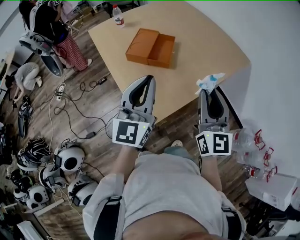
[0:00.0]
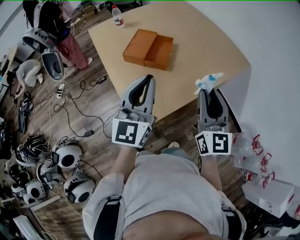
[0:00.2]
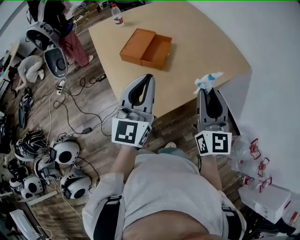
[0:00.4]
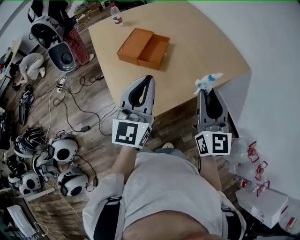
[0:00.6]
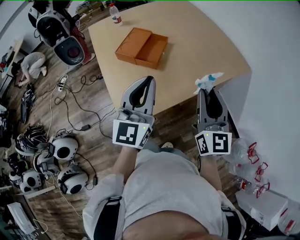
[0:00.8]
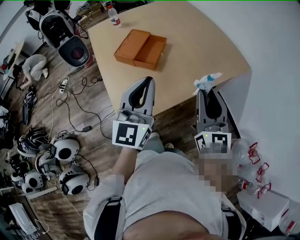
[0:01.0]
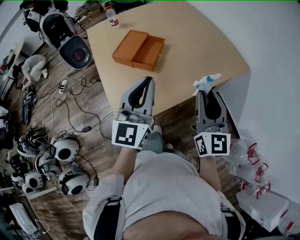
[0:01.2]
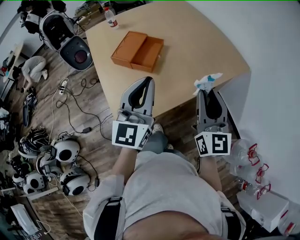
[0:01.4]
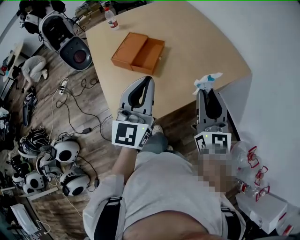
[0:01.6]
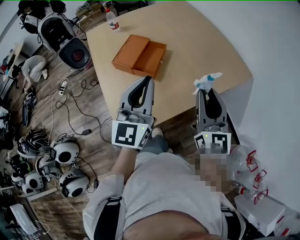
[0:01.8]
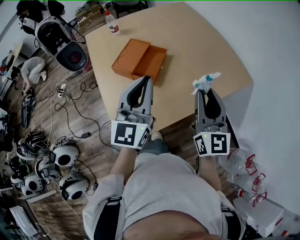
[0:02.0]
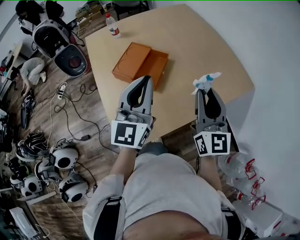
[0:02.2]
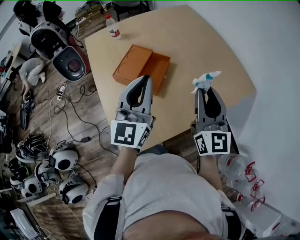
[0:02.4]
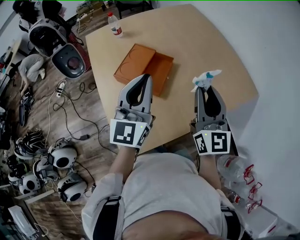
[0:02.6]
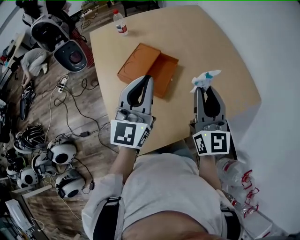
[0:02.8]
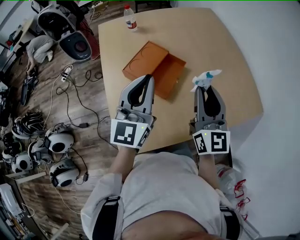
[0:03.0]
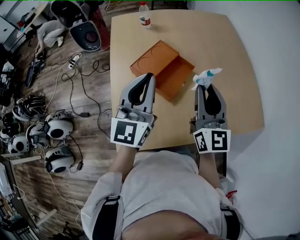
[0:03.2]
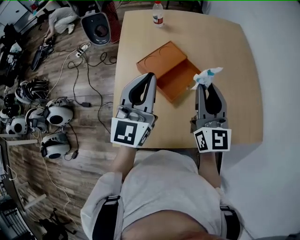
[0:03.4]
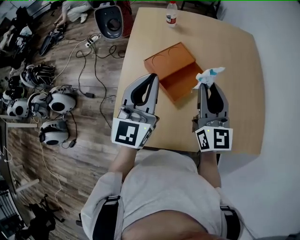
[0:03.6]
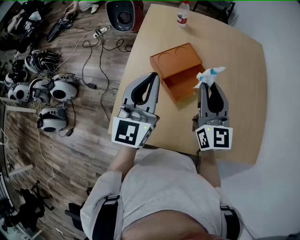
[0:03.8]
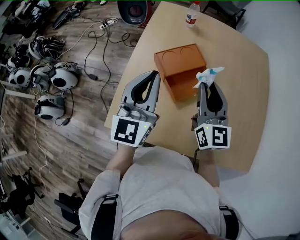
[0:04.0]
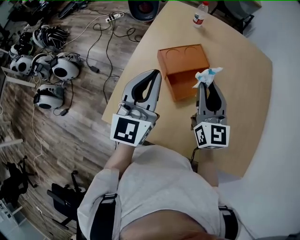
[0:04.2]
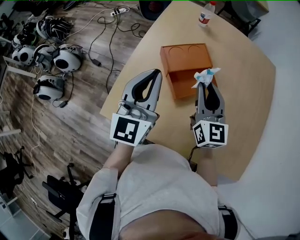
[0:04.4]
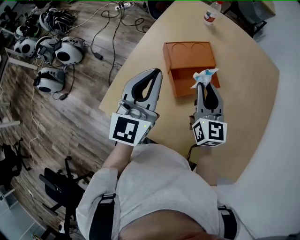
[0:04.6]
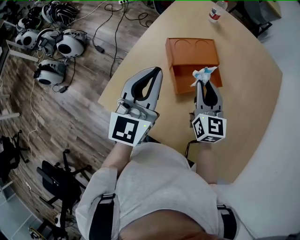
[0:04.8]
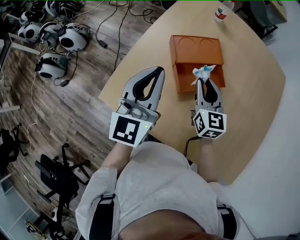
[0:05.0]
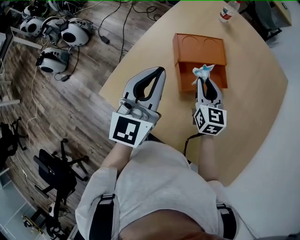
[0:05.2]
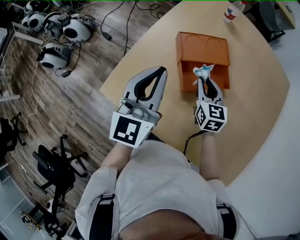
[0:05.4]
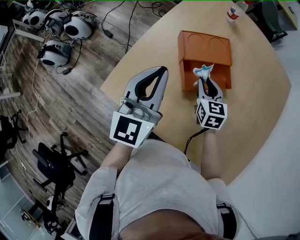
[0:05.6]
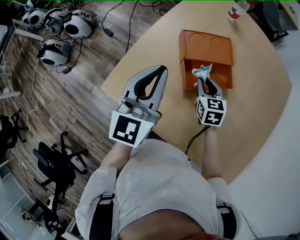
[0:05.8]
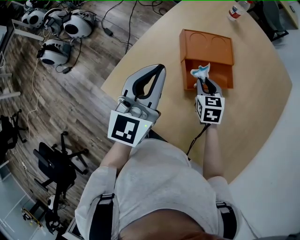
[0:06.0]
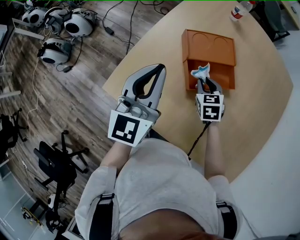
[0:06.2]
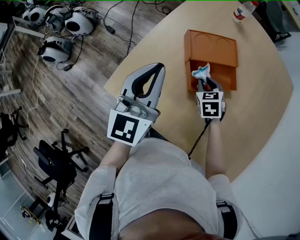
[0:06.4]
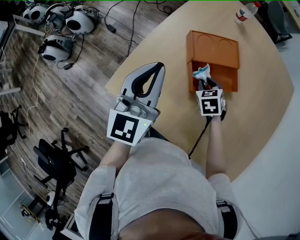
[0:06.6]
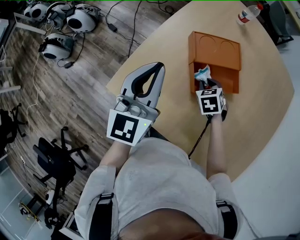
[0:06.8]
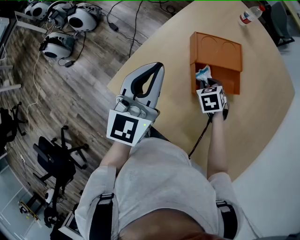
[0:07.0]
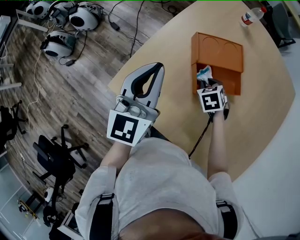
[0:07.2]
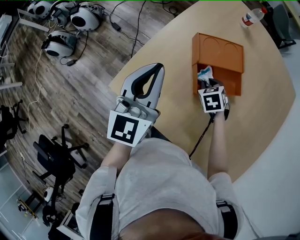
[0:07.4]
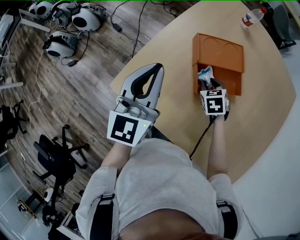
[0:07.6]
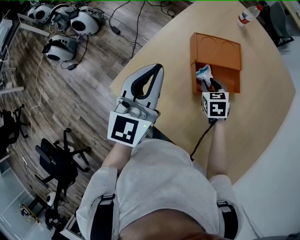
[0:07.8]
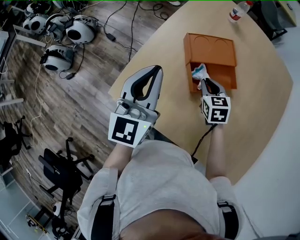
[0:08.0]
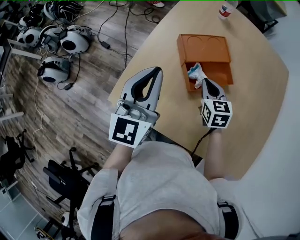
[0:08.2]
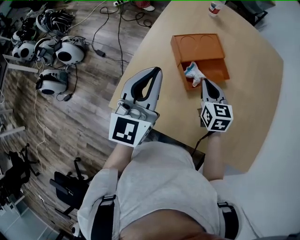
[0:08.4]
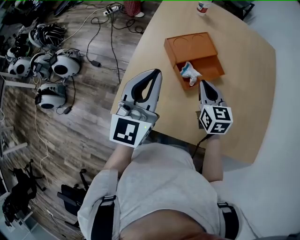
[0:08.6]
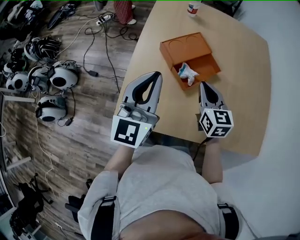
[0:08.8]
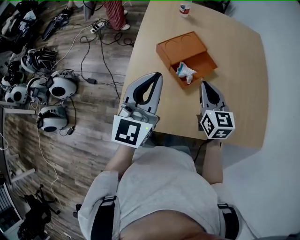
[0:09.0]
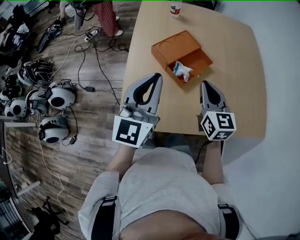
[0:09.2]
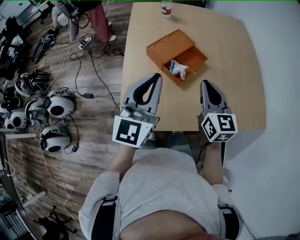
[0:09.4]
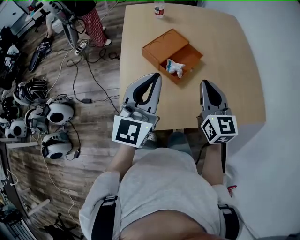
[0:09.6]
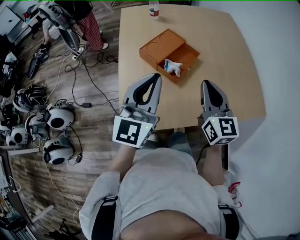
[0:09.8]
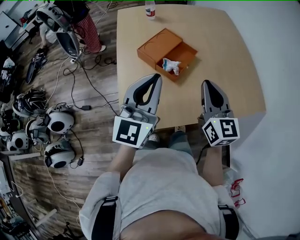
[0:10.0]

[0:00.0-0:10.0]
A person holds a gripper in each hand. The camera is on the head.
0:00.0 to 0:01.4: The left gripper goes approximately 15 cm to the right. The right gripper travels to the right and forward by about 15 cm.
0:01.4 to 0:02.8: The grippers both shift forward and to the left by some 20 cm.
0:02.8 to 0:04.2: The right gripper shifts by roughly 15 cm, and rotates some 40 degrees. The left gripper ends up approximately 5 cm from where it was, and rotates about 40 degrees.
0:04.2 to 0:05.8: The right gripper travels downward by roughly 20 cm, and tips its fingers downward by roughly 40 degrees. The left gripper ends up approximately 5 cm from where it was.
0:05.8 to 0:07.2: The left gripper goes approximately 5 cm to the left. The right gripper shifts approximately 5 cm downward, and swivels approximately 30 degrees.
0:07.2 to 0:08.6: The left gripper changes its angle by some 20 degrees. The right gripper is displaced upward by approximately 15 cm, and tips its fingers upward by some 40 degrees.
0:08.6 to 0:10.0: The left gripper changes place by roughly 5 cm, and rotates some 30 degrees. The right gripper changes place by some 20 cm, and swivels approximately 30 degrees.

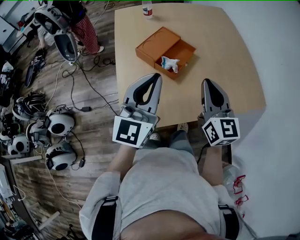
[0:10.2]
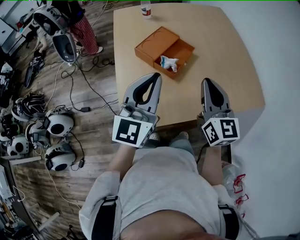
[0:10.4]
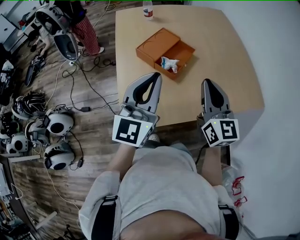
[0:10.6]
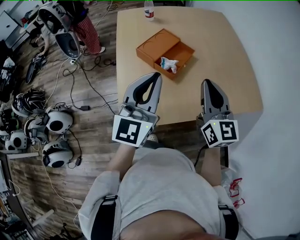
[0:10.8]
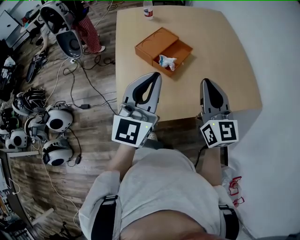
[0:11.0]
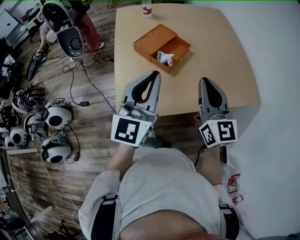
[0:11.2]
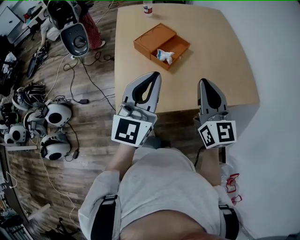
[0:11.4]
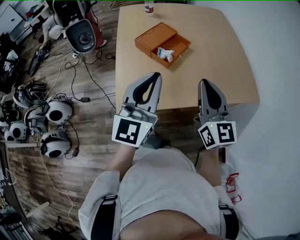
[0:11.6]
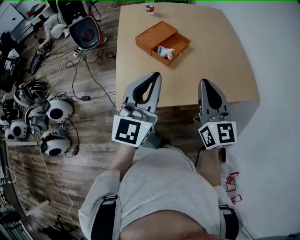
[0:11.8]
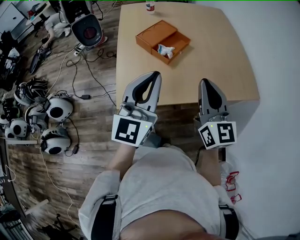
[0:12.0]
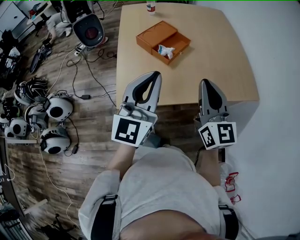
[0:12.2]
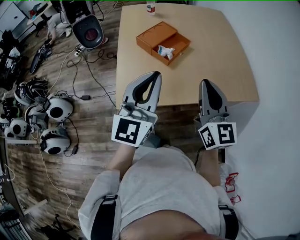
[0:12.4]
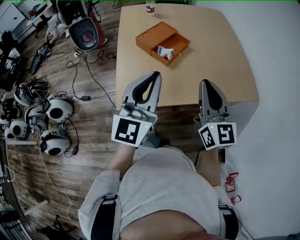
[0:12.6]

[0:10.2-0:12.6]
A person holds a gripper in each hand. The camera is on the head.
0:10.2 to 0:11.4: Both grippers travel together backward, approximately 10 cm.
0:11.4 to 0:12.6: The grippers move only a little.

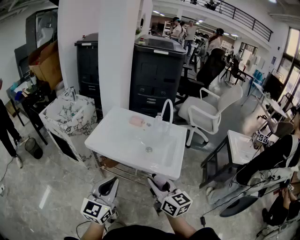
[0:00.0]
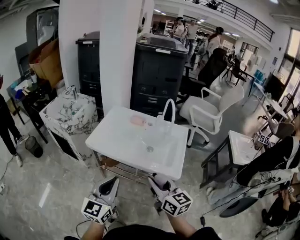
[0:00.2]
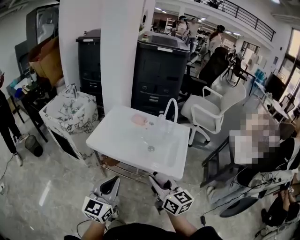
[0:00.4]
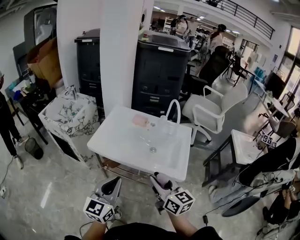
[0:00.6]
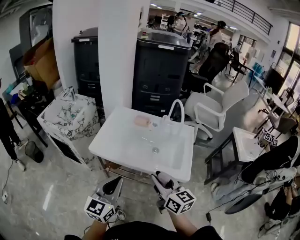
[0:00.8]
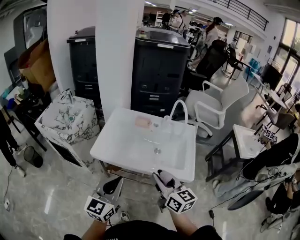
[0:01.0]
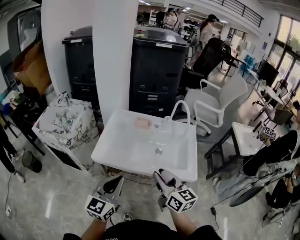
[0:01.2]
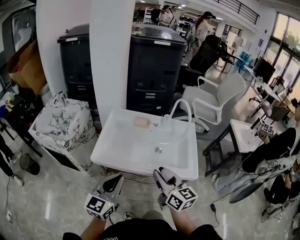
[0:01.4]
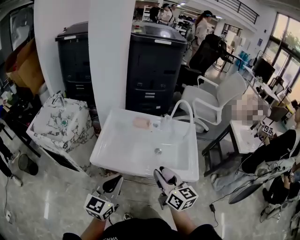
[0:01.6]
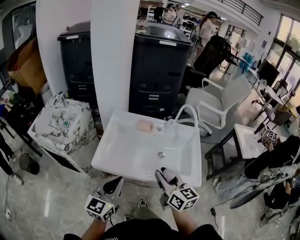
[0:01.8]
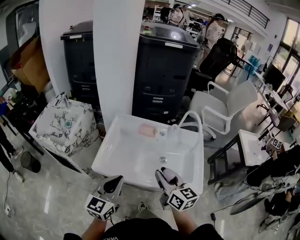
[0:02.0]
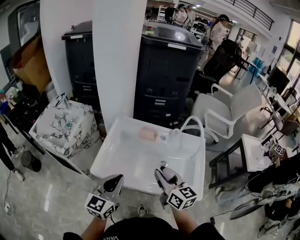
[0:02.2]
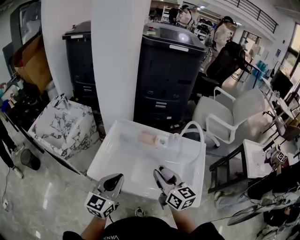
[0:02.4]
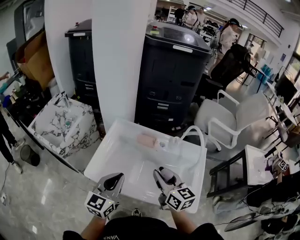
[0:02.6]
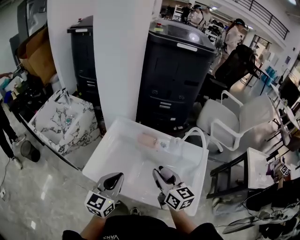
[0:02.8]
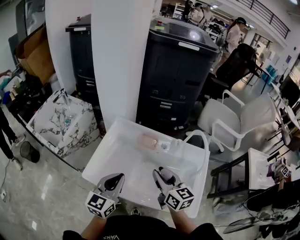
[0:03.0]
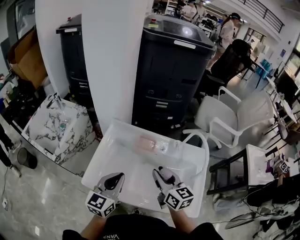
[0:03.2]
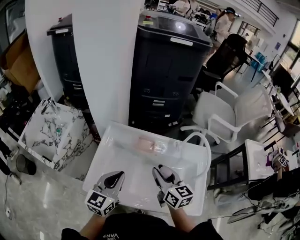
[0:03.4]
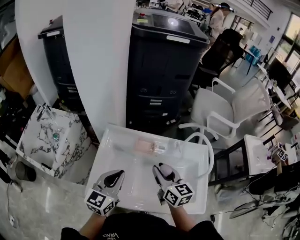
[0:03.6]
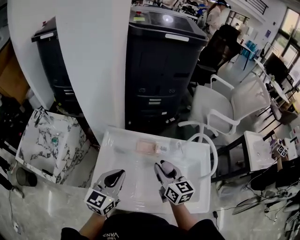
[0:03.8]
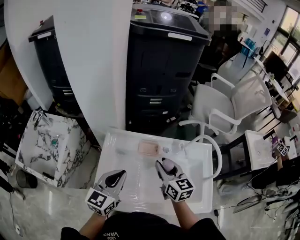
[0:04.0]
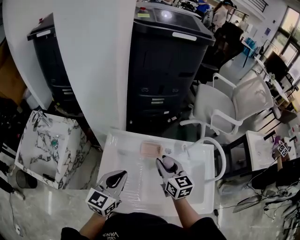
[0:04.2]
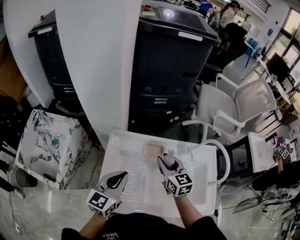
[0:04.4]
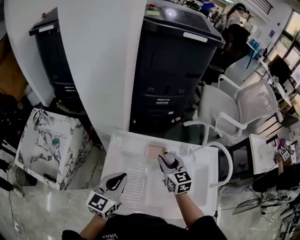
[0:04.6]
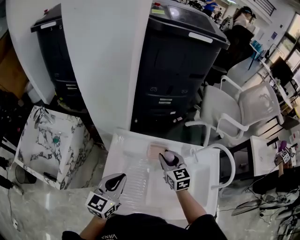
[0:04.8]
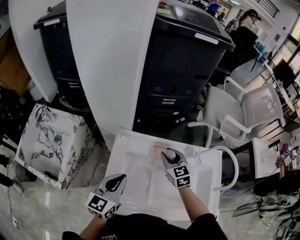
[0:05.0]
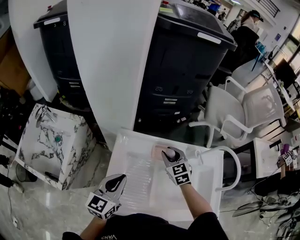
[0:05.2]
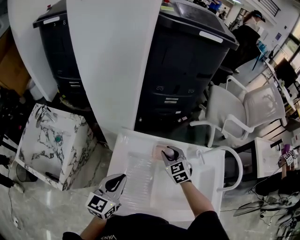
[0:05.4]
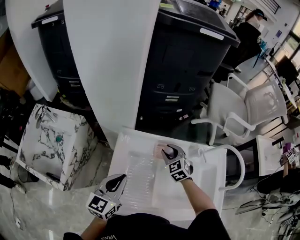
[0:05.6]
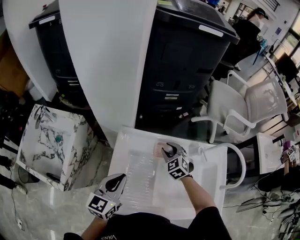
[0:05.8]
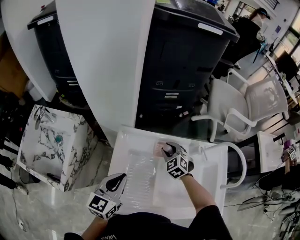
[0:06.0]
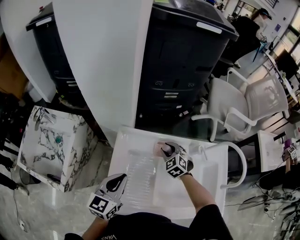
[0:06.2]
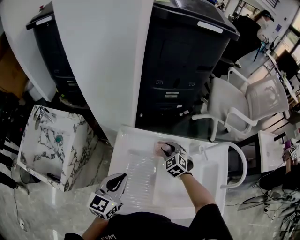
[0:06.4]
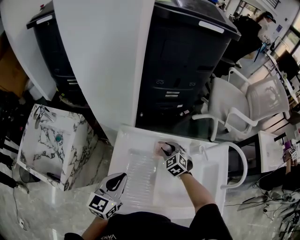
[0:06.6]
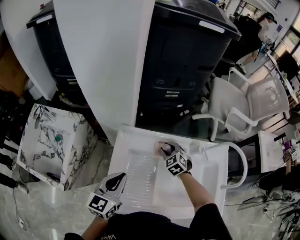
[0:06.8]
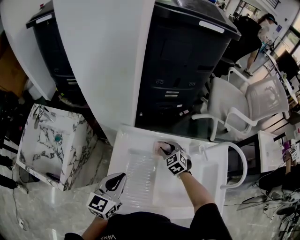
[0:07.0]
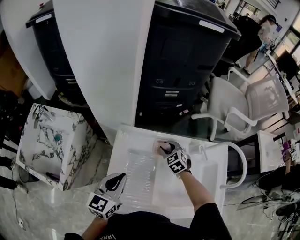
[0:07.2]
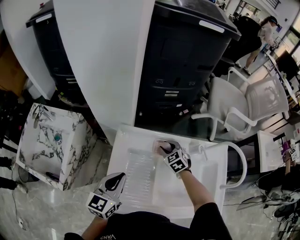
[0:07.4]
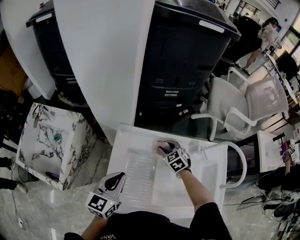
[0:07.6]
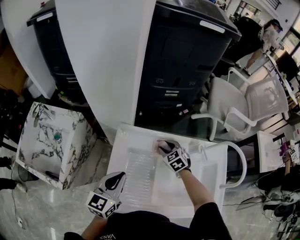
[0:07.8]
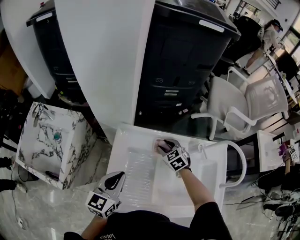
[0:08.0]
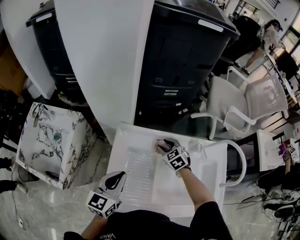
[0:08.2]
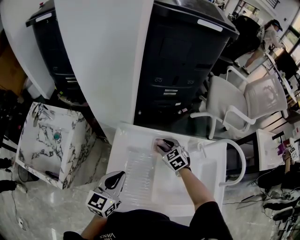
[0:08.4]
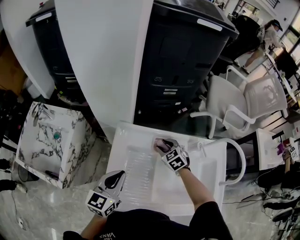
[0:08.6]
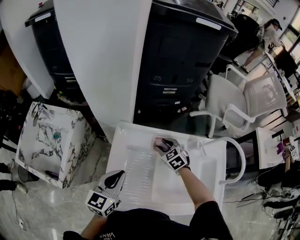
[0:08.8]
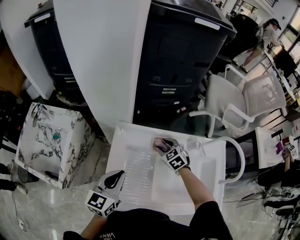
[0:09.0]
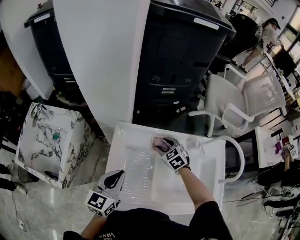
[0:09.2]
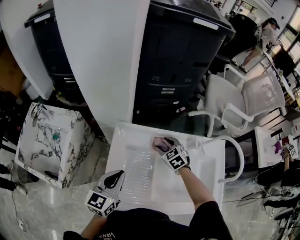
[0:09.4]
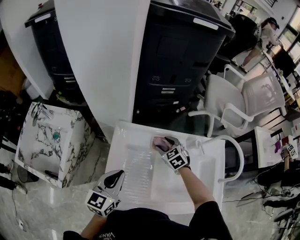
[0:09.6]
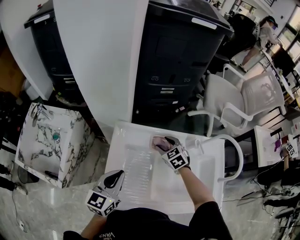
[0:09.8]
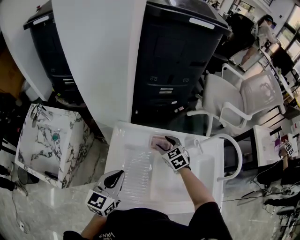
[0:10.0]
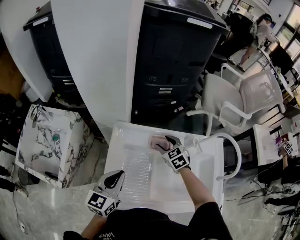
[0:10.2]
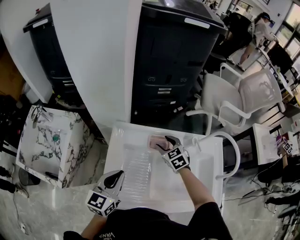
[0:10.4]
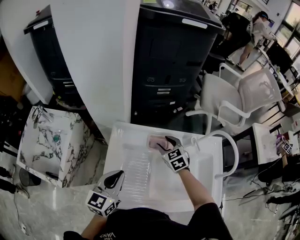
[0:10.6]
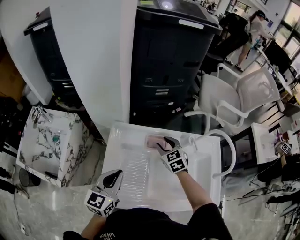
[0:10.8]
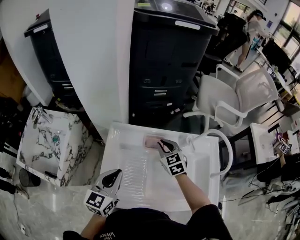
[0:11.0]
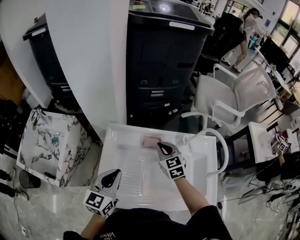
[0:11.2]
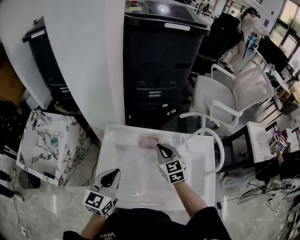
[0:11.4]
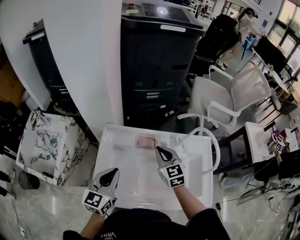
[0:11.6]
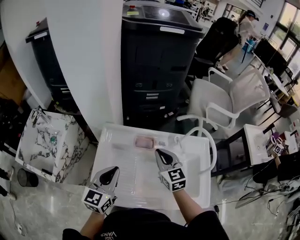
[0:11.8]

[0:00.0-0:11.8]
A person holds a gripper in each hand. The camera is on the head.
0:00.0 to 0:01.4: Both grippers move forward and to the left, about 15 cm.
0:01.4 to 0:03.0: Both grippers move forward, about 20 cm.
0:03.0 to 0:04.4: The left gripper moves forward and to the left, roughly 15 cm; the right gripper heads forward, covering approximately 15 cm.
0:04.4 to 0:06.0: The right gripper moves downward and forward, about 15 cm, and swivels some 50 degrees; the left gripper shifts some 5 cm to the left.
0:06.0 to 0:10.4: The grippers move only a little.
0:10.4 to 0:11.8: The right gripper travels upward and backward by approximately 15 cm, turns by about 30 degrees, and closes. Meanwhile the left gripper moves to the right, roughly 5 cm.
